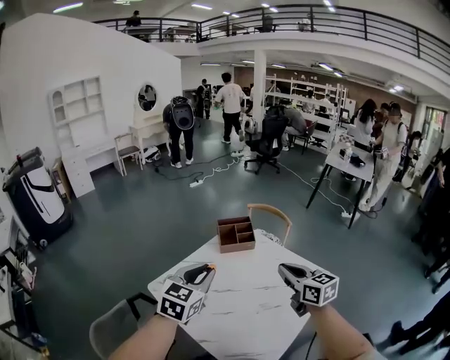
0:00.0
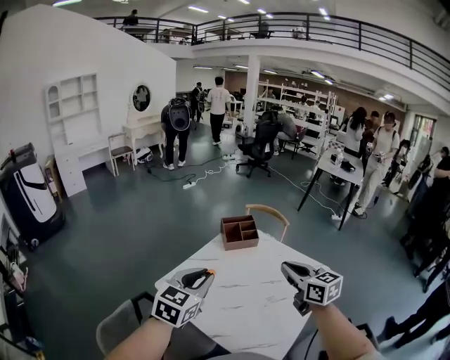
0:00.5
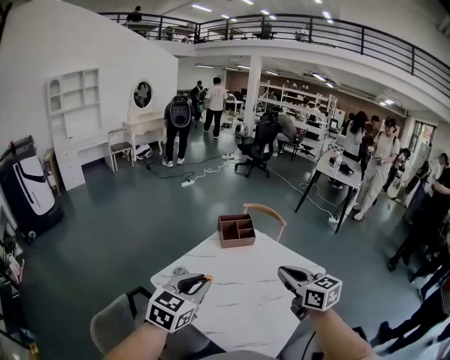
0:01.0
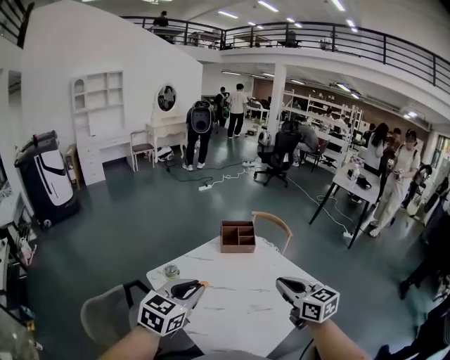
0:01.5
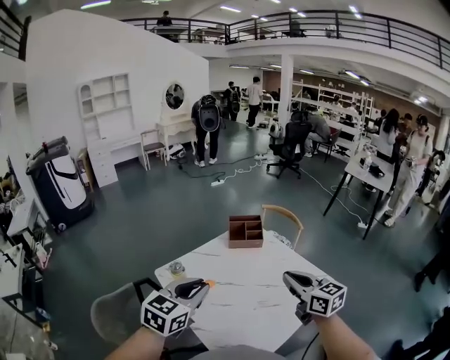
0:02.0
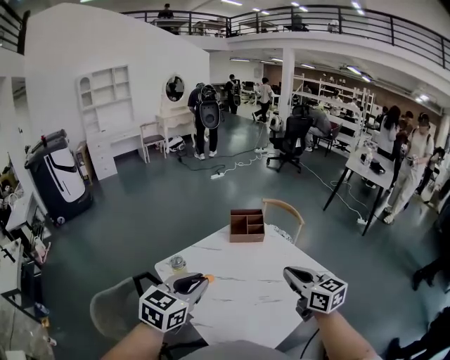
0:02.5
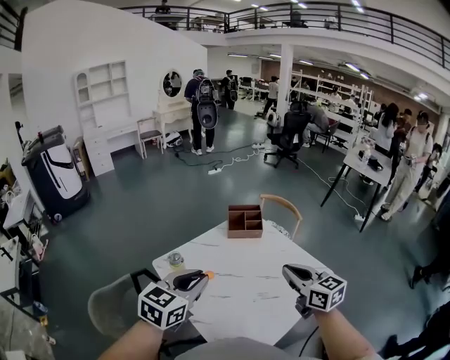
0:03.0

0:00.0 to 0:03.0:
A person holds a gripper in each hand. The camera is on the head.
0:00.0 to 0:01.5: The two grippers go about 10 cm backward.
0:01.5 to 0:03.0: There are only small adjustments of the grippers.

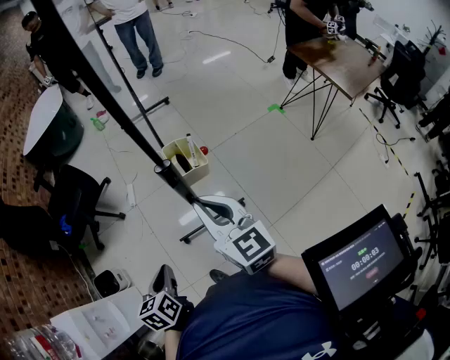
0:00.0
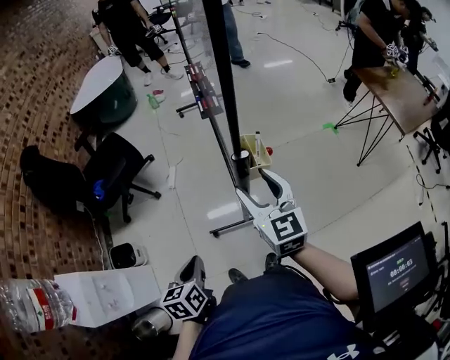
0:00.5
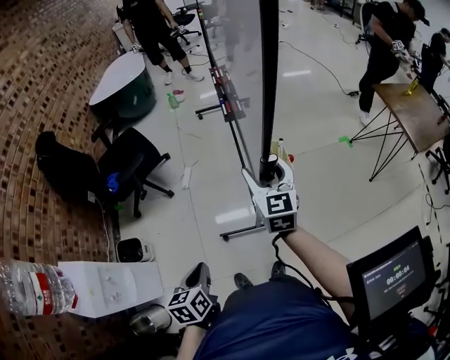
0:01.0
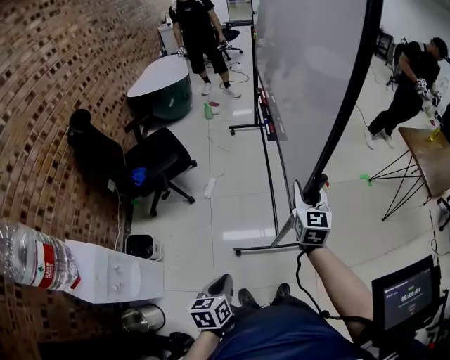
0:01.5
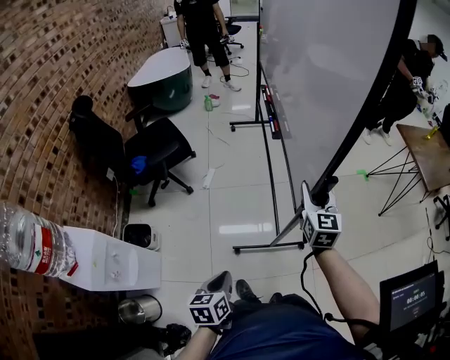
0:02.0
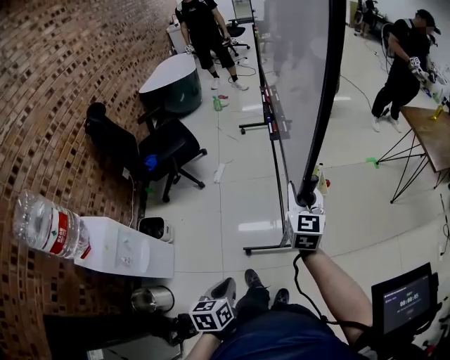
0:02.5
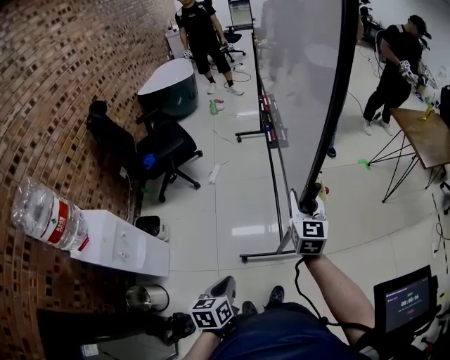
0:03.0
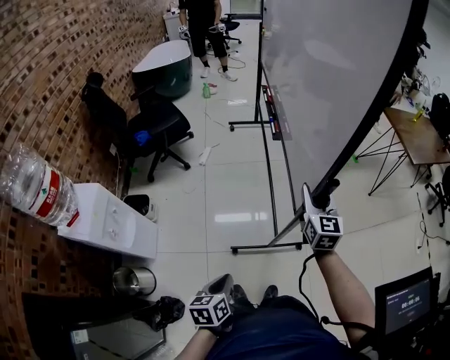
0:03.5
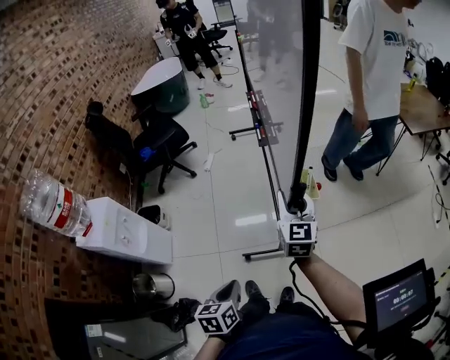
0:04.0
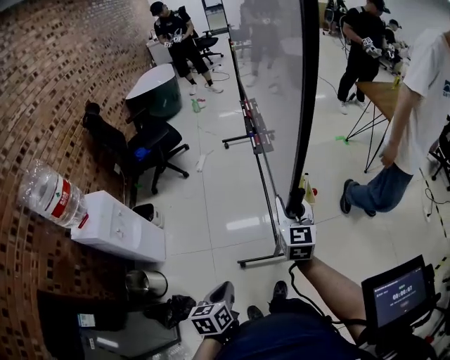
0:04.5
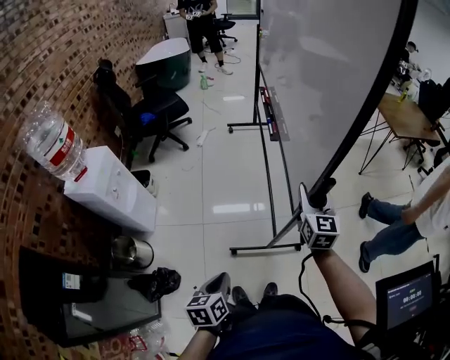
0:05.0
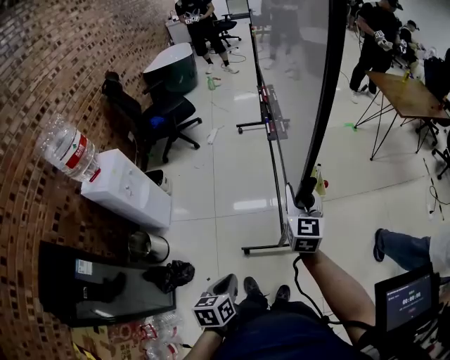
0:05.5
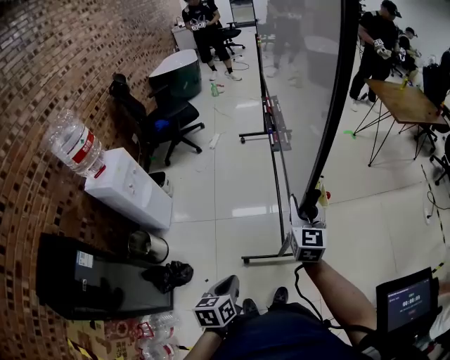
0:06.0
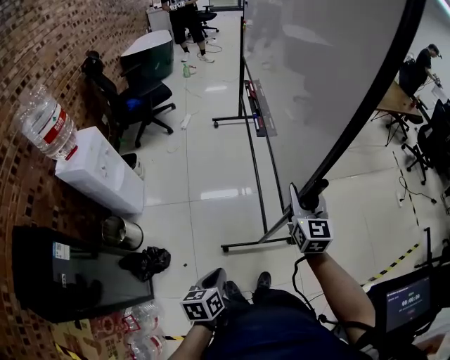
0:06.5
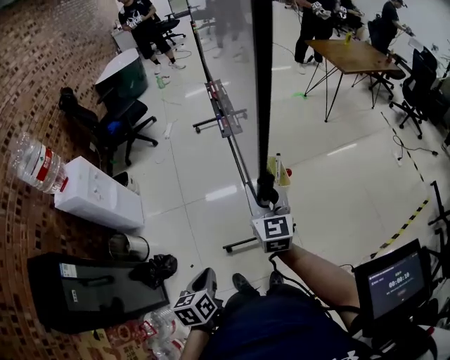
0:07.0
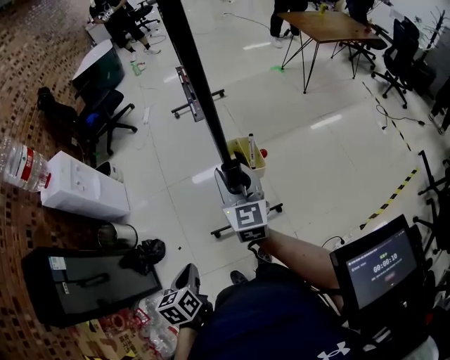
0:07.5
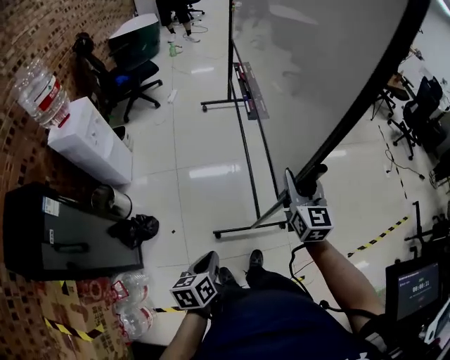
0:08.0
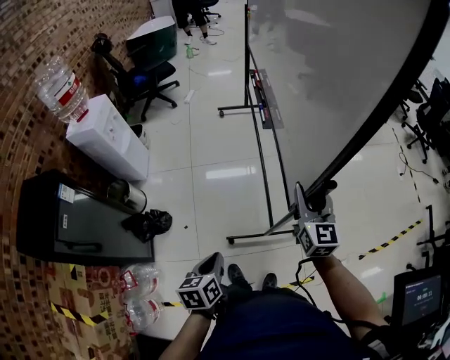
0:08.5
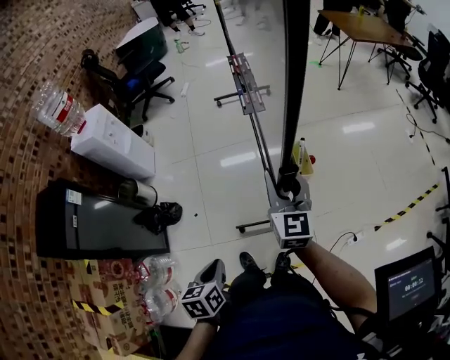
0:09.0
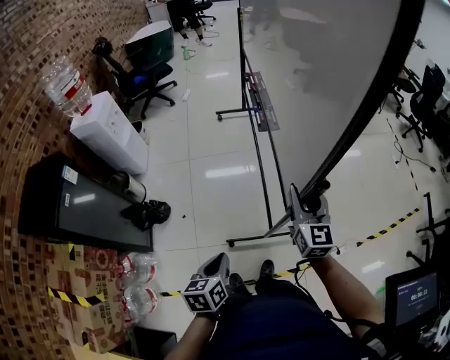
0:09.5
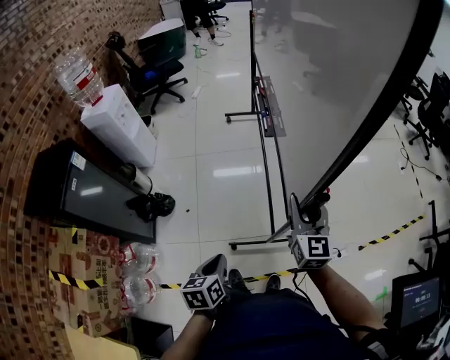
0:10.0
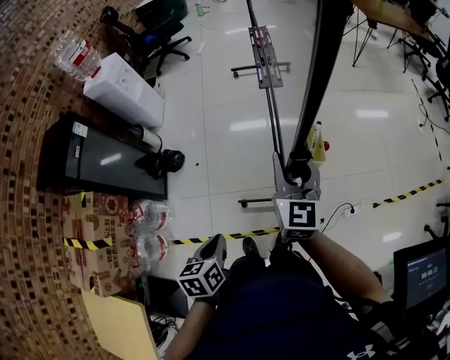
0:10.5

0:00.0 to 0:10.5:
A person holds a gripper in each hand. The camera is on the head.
0:00.0 to 0:02.0: The right gripper goes about 10 cm forward and downward, turns by about 20 degrees, and opens. Meanwhile the left gripper shifts some 10 cm backward.
0:02.0 to 0:04.0: The right gripper shifts some 25 cm backward. The left gripper travels backward and to the right by roughly 30 cm.
0:04.0 to 0:06.5: Both grippers move backward, some 25 cm.
0:06.5 to 0:08.5: The two grippers go some 20 cm backward.
0:08.5 to 0:10.5: The right gripper moves backward, some 20 cm, while the left gripper travels backward and to the right by some 25 cm.

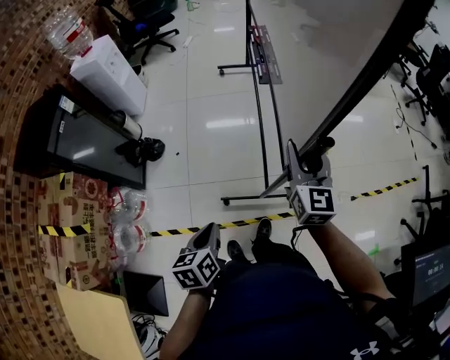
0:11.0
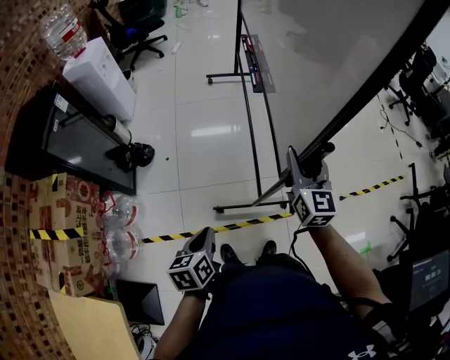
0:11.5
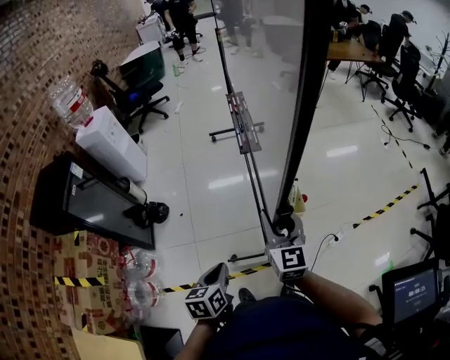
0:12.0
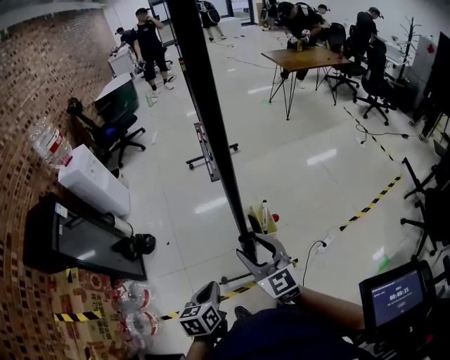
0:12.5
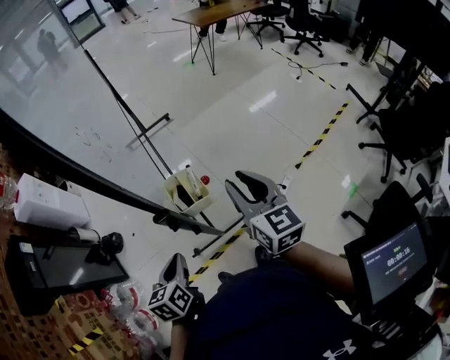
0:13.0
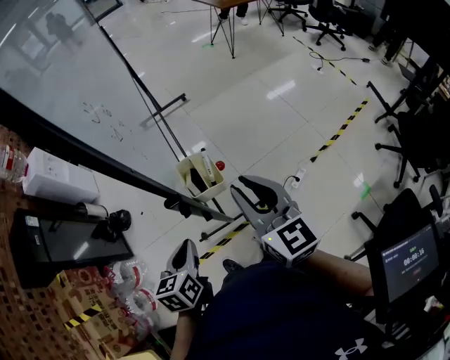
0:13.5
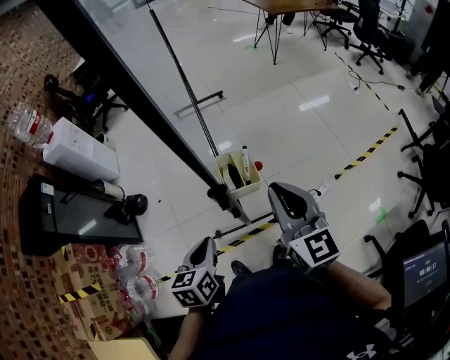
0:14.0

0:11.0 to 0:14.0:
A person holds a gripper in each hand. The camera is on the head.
0:11.0 to 0:12.5: The right gripper heads backward, covering about 10 cm. Meanwhile the left gripper shifts some 5 cm to the right.
0:12.5 to 0:14.0: The right gripper heads to the right and upward, covering approximately 15 cm, and closes its fingers. The left gripper moves to the right, some 5 cm.

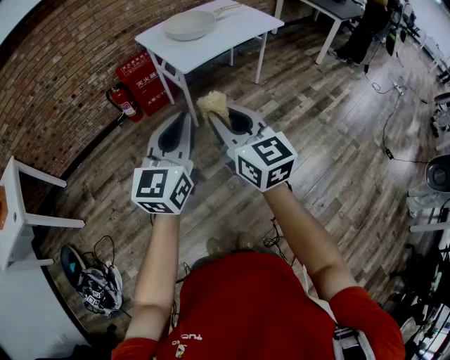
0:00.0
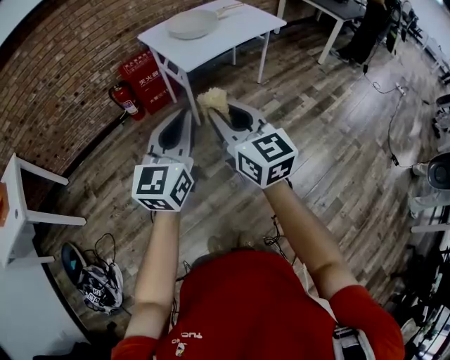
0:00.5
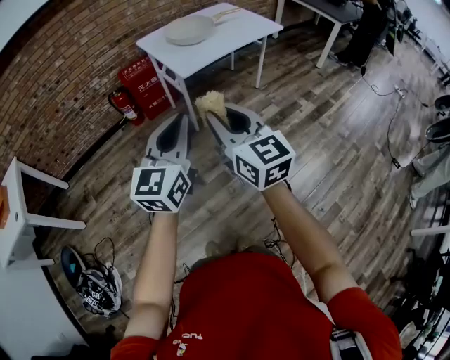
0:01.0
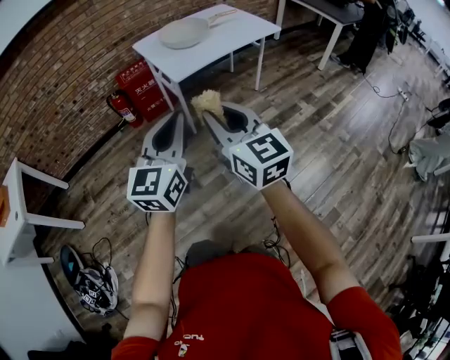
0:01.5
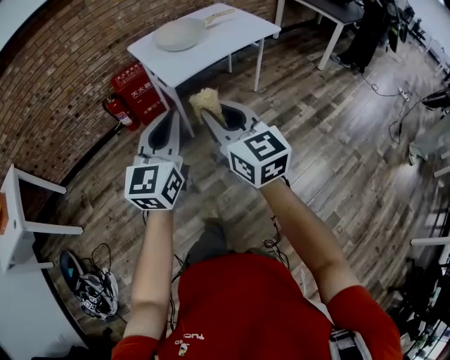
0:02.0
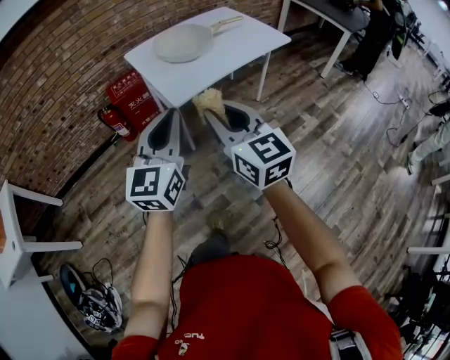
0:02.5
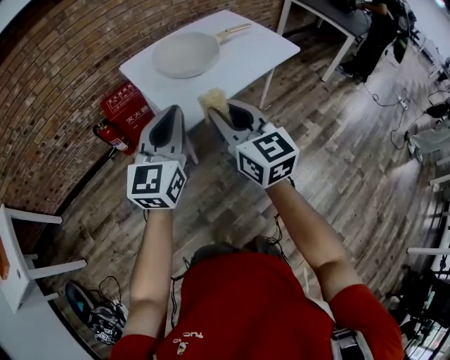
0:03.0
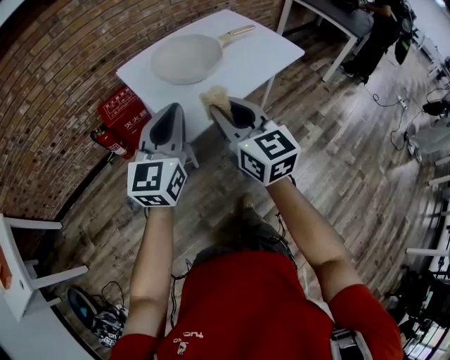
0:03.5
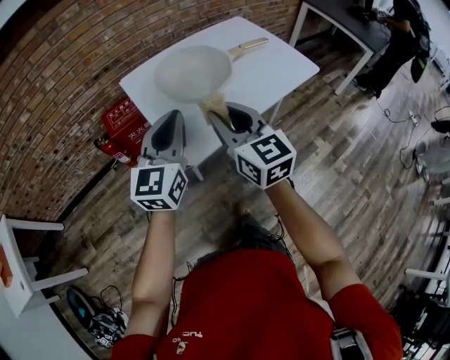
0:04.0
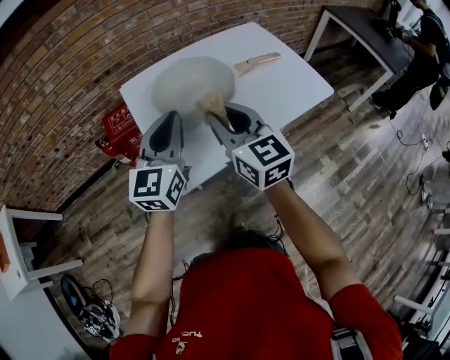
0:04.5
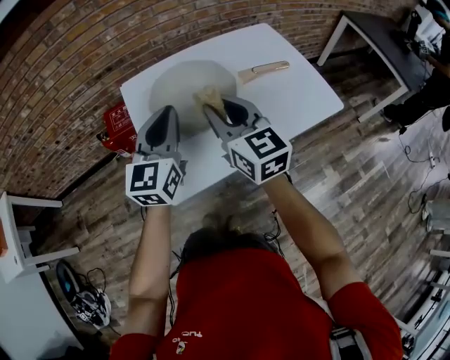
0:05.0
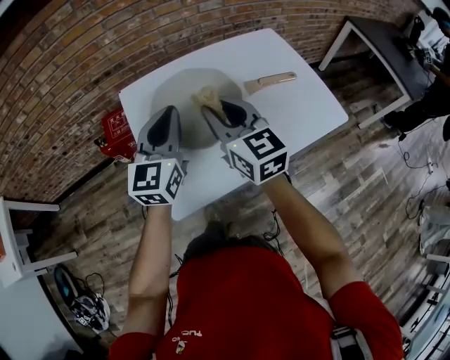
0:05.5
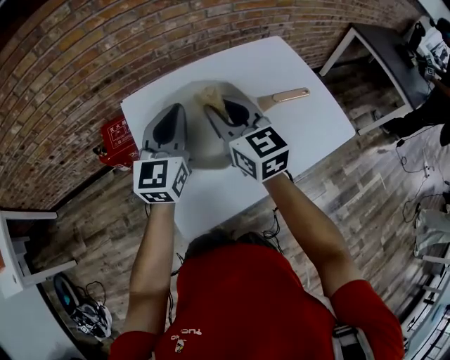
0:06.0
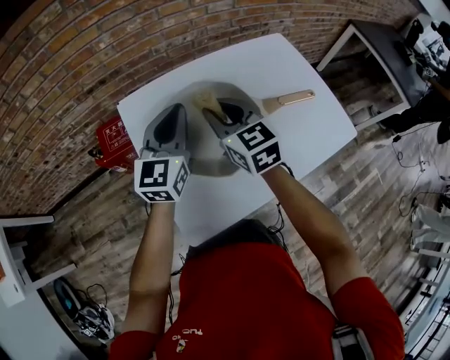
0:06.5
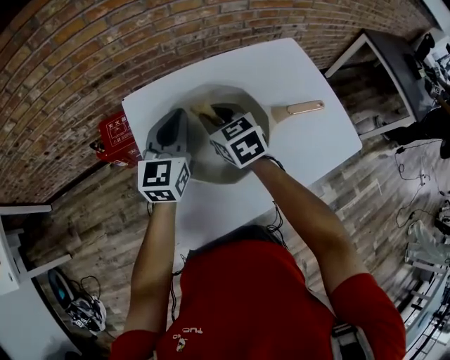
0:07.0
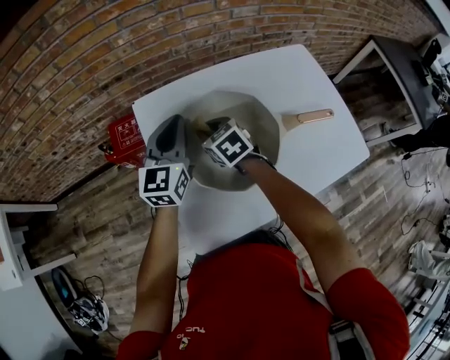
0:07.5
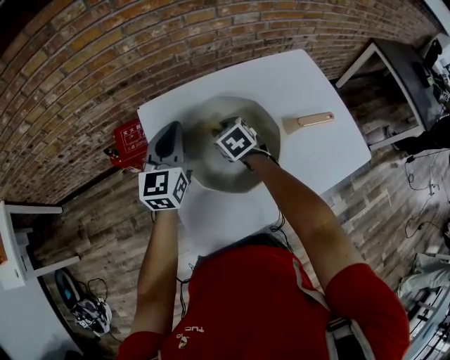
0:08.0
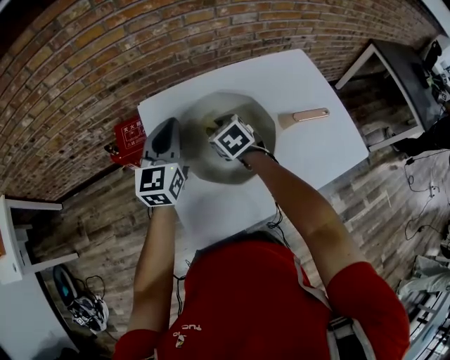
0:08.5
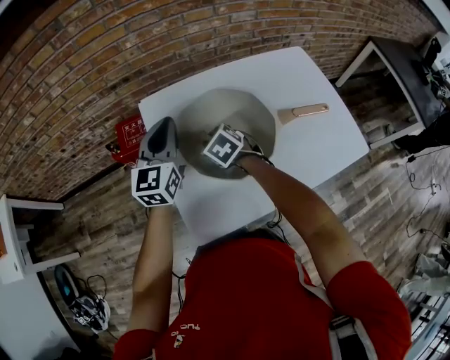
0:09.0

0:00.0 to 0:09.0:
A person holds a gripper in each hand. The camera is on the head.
0:00.0 to 0:02.0: The left gripper goes approximately 10 cm forward and to the right. The right gripper shifts roughly 10 cm to the right and forward.
0:02.0 to 0:04.5: The pair of grippers is taken forward, some 60 cm.
0:04.5 to 0:07.0: The right gripper shifts approximately 30 cm forward and downward, and turns by roughly 30 degrees. Meanwhile the left gripper is displaced forward by about 25 cm.
0:07.0 to 0:09.0: The left gripper is displaced to the left by approximately 5 cm. Meanwhile the right gripper shifts about 10 cm downward, and changes its angle by about 30 degrees.

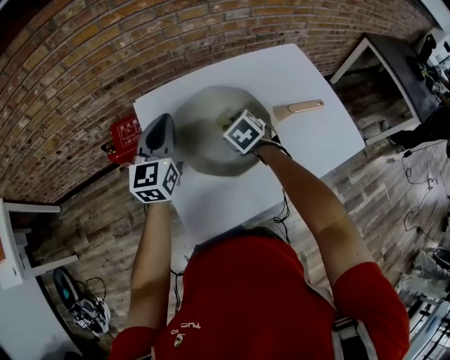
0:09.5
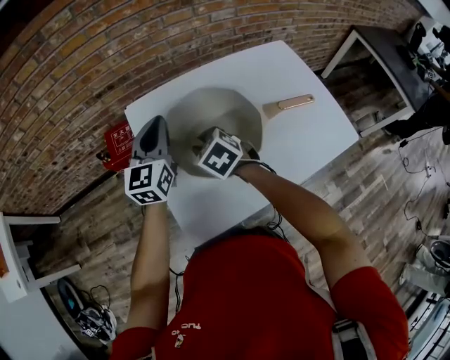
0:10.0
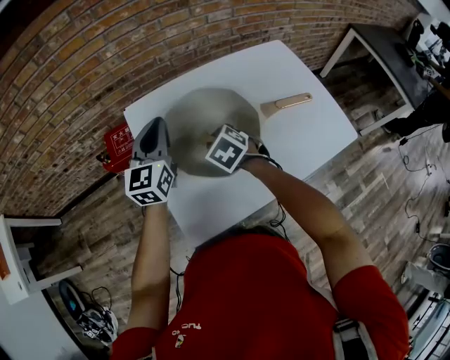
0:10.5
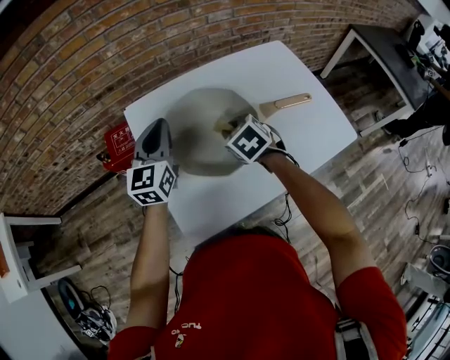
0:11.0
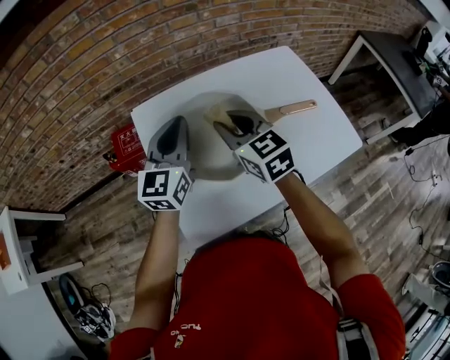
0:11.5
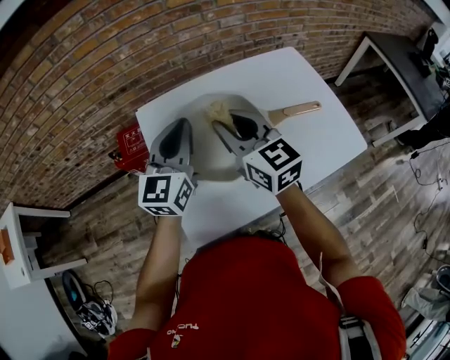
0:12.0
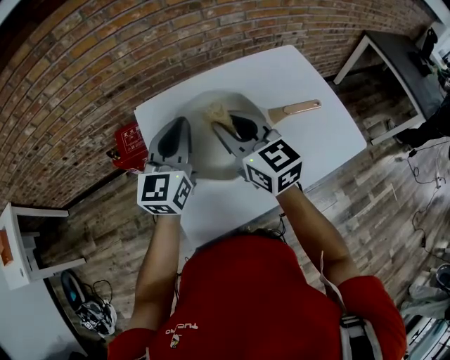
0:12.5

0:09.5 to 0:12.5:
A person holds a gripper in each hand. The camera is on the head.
0:09.5 to 0:11.0: The right gripper travels to the left and back again, about 10 cm each way.
0:11.0 to 0:12.5: The left gripper travels upward by roughly 5 cm, while the right gripper shifts about 15 cm upward, and angles its fingers upward, by some 50 degrees.
